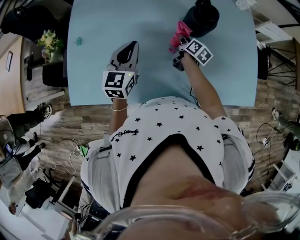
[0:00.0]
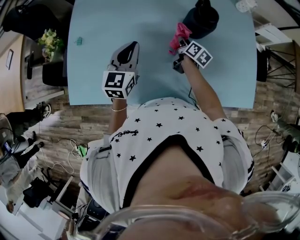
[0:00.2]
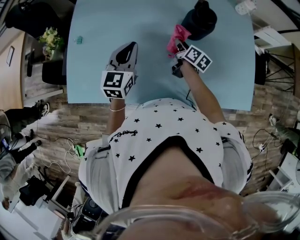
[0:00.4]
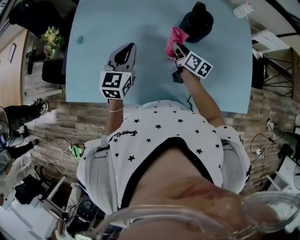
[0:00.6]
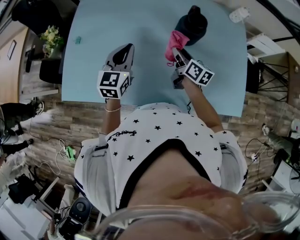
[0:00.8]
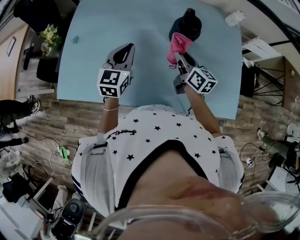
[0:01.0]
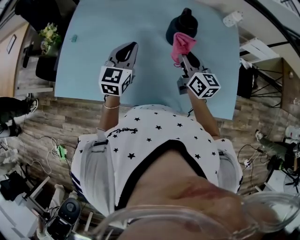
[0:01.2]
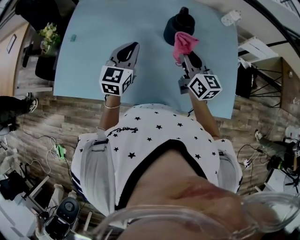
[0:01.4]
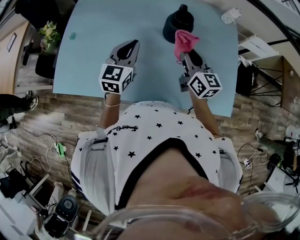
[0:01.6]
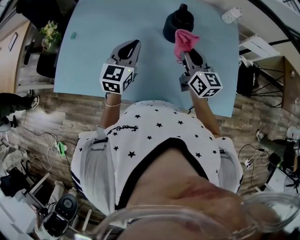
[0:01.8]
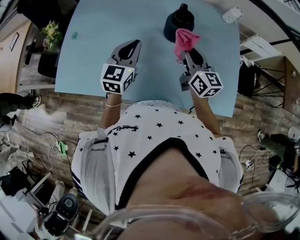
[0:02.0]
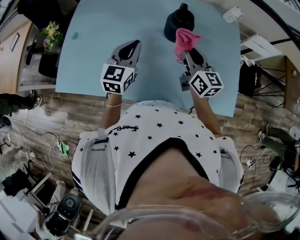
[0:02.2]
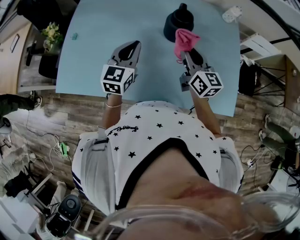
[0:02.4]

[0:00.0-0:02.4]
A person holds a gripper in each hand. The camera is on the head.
0.0 to 1.2 s: The left gripper moves to the right, approximately 10 cm; the right gripper is displaced upward and backward by some 20 cm, and changes its angle by about 50 degrees.
1.2 to 2.4 s: The grippers move only a little.

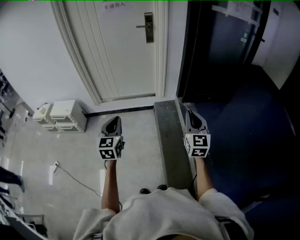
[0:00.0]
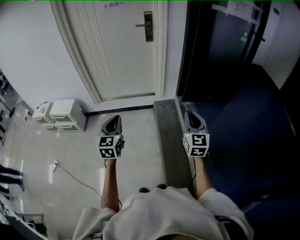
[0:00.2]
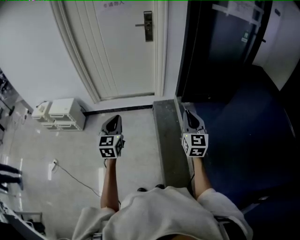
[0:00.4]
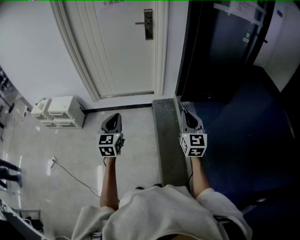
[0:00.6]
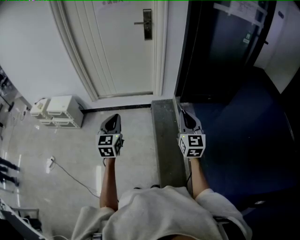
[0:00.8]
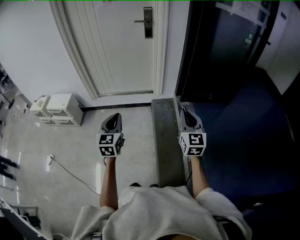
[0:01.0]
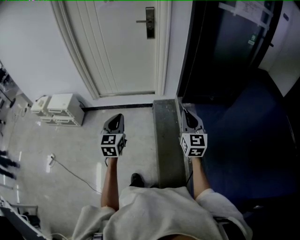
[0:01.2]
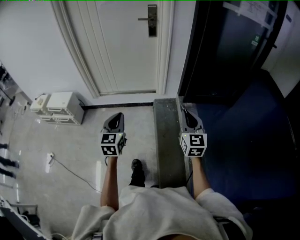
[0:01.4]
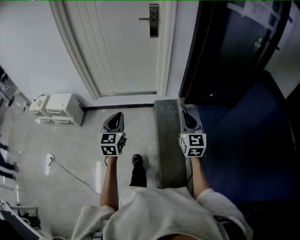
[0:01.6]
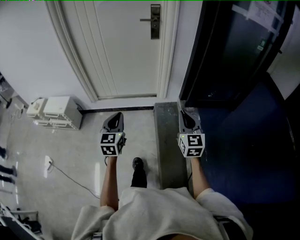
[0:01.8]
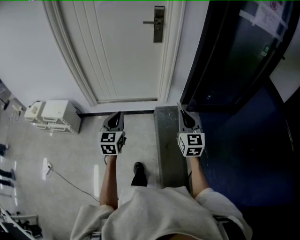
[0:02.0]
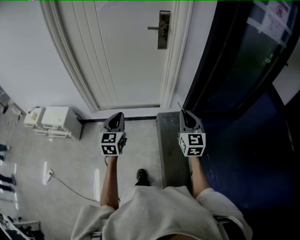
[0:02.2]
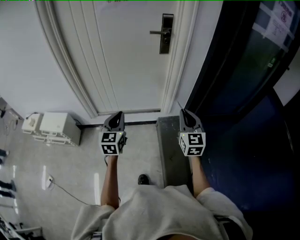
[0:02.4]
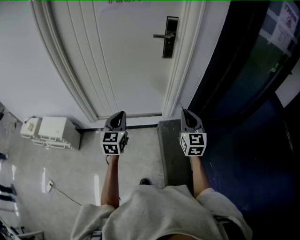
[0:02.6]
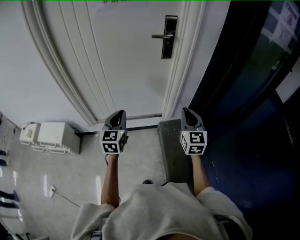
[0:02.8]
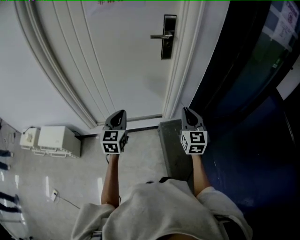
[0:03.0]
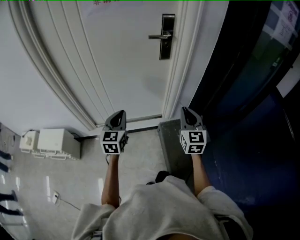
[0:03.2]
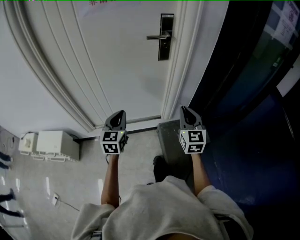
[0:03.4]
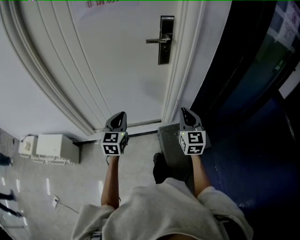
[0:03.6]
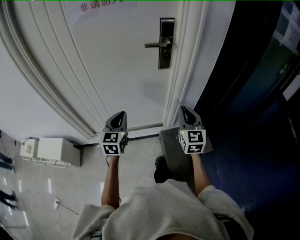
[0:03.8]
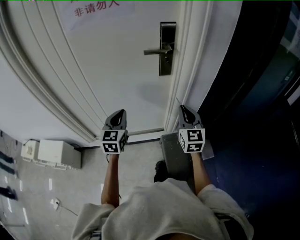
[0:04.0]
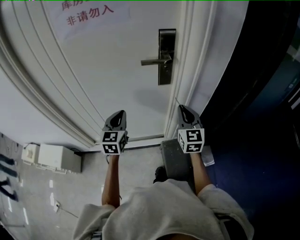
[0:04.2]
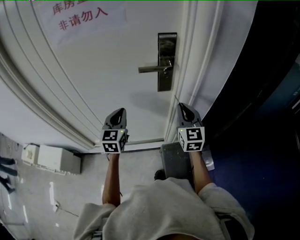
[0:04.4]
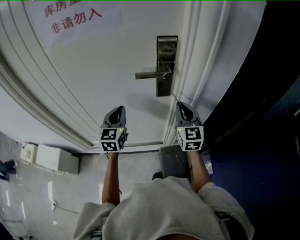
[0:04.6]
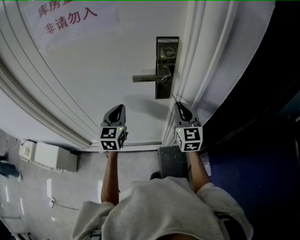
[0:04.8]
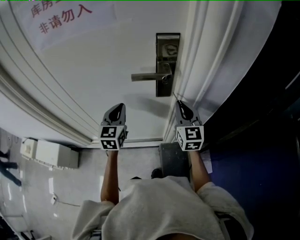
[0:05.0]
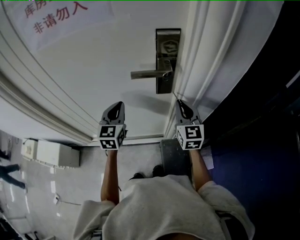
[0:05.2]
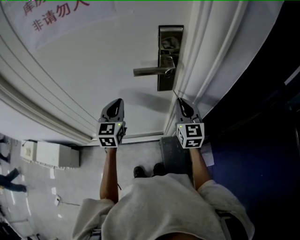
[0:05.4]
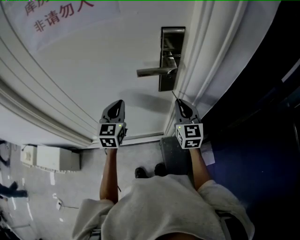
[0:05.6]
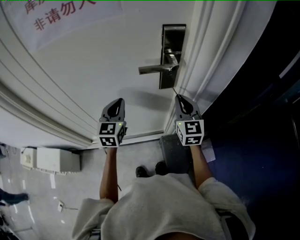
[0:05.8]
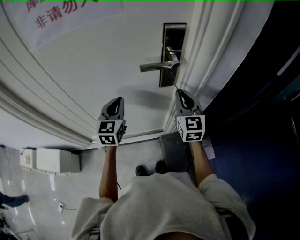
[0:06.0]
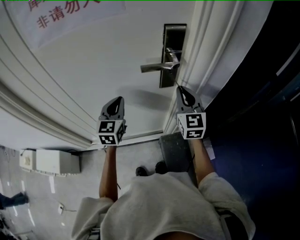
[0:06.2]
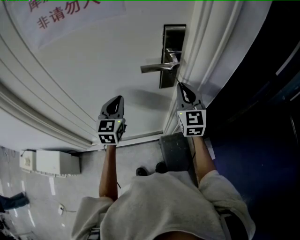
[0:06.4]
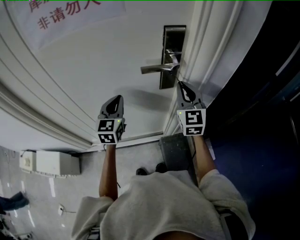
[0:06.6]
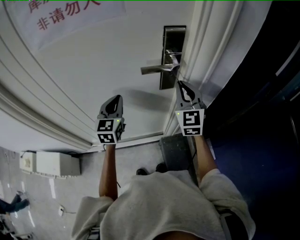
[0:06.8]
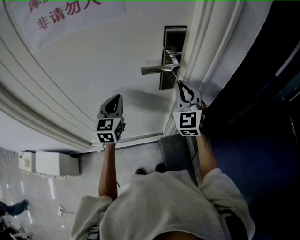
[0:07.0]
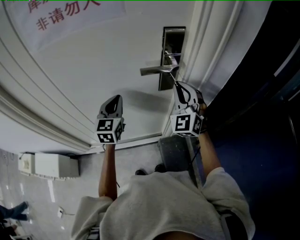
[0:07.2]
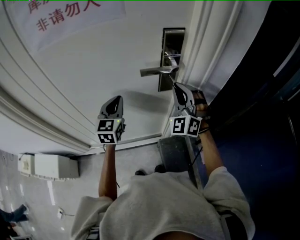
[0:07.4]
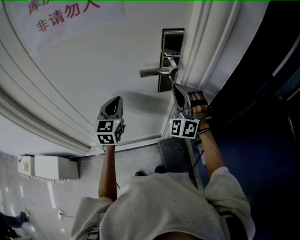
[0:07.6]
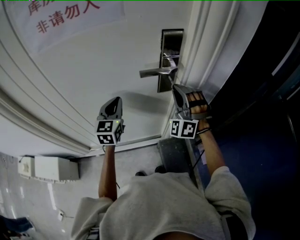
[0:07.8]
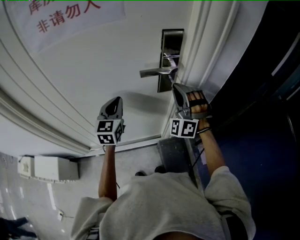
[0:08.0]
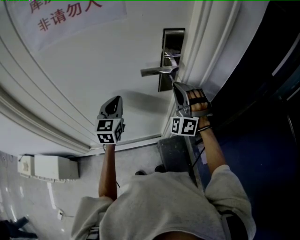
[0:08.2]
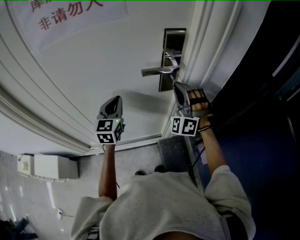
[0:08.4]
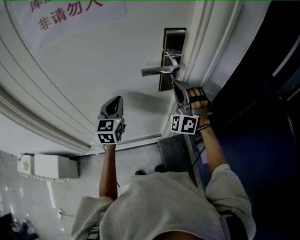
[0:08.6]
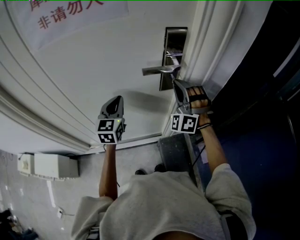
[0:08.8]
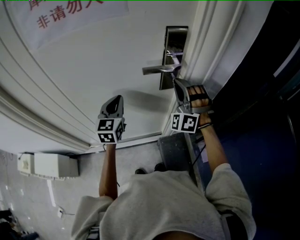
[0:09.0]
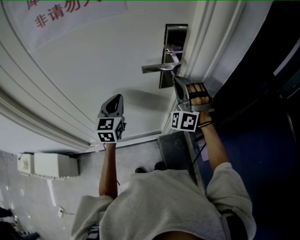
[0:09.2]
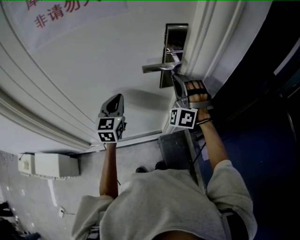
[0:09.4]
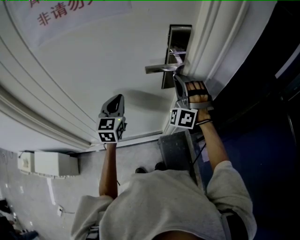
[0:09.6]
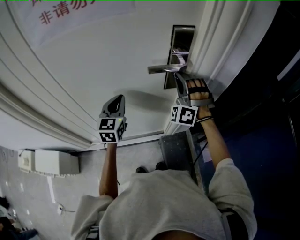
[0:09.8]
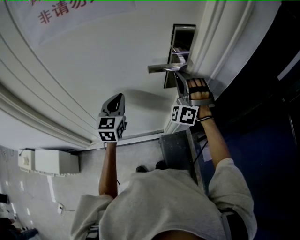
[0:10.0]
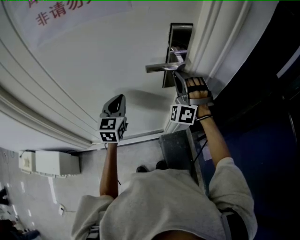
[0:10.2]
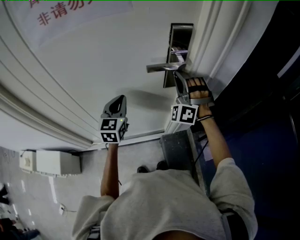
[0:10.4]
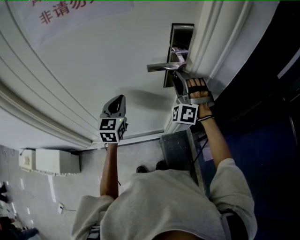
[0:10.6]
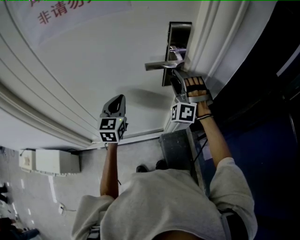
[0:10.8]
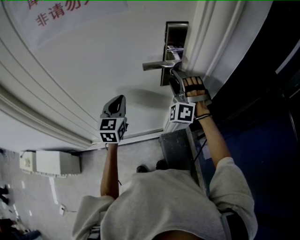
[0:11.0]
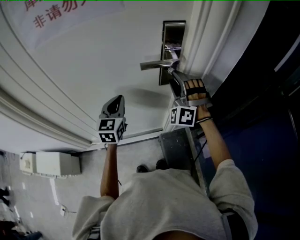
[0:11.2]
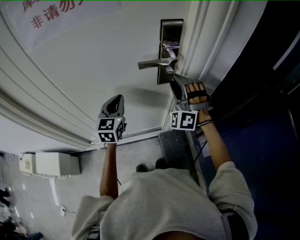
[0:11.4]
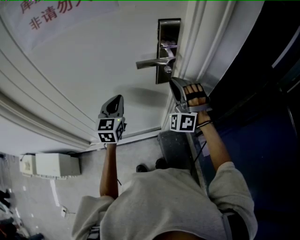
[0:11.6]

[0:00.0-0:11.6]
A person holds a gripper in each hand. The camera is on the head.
0.0 to 1.4 s: The right gripper shifts some 10 cm forward. Meanwhile the left gripper goes some 10 cm forward and to the right.
1.4 to 2.8 s: The two grippers travel together, forward, about 40 cm.
2.8 to 4.4 s: The two grippers go some 35 cm forward.
4.4 to 5.8 s: The two grippers go approximately 5 cm forward.
5.8 to 7.2 s: The right gripper shifts some 5 cm upward, and turns by roughly 40 degrees.
7.2 to 8.8 s: The right gripper swivels about 40 degrees.
8.8 to 10.2 s: The grippers make only small movements.
10.2 to 11.6 s: The right gripper ends up approximately 5 cm from where it was, and opens, then closes once more.

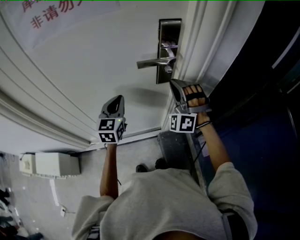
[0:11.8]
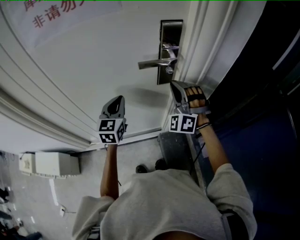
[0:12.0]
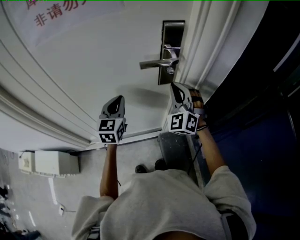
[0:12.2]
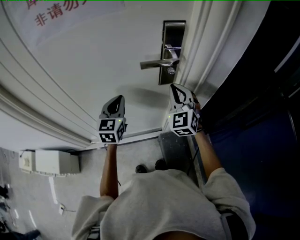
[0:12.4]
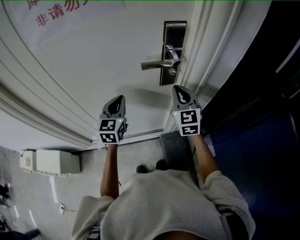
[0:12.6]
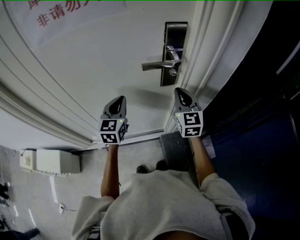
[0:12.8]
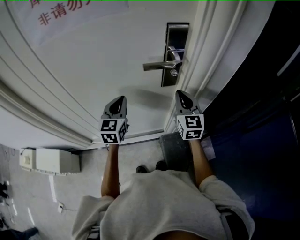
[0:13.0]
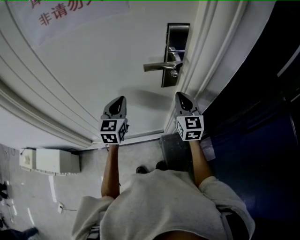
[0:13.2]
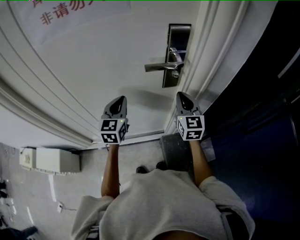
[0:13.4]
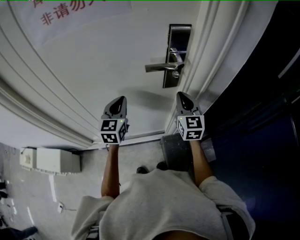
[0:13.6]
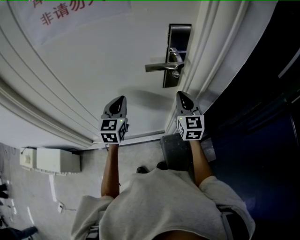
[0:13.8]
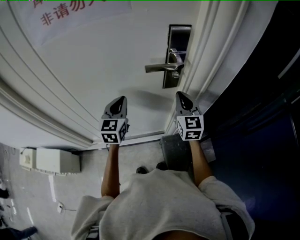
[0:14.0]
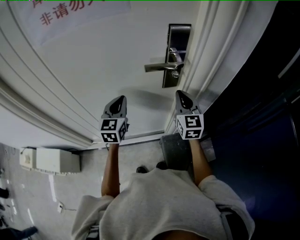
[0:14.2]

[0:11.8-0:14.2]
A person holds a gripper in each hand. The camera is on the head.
11.8 to 13.0 s: The right gripper rotates around the line of its fingers by some 80 degrees, clockwise from behind.
13.0 to 14.2 s: The two grippers keep their place.

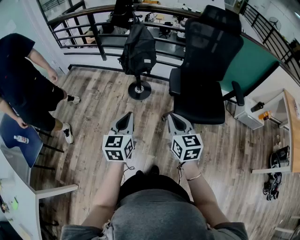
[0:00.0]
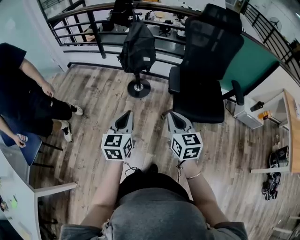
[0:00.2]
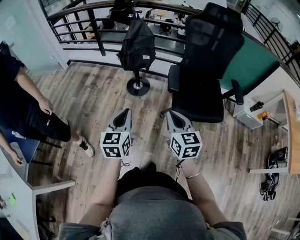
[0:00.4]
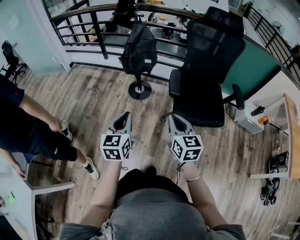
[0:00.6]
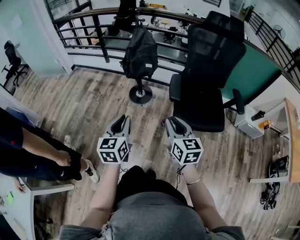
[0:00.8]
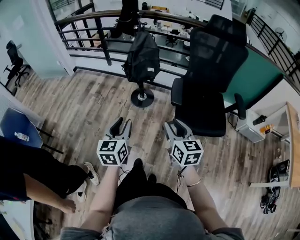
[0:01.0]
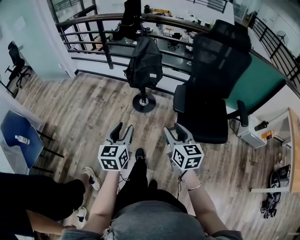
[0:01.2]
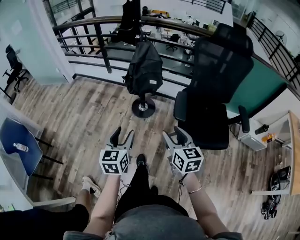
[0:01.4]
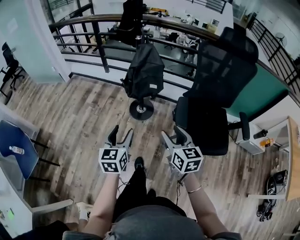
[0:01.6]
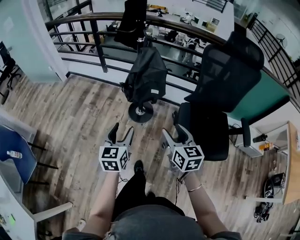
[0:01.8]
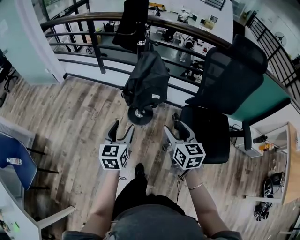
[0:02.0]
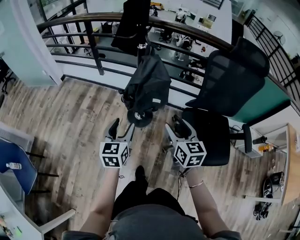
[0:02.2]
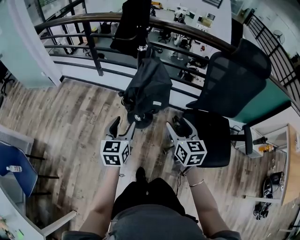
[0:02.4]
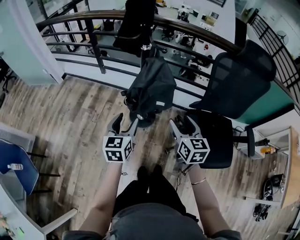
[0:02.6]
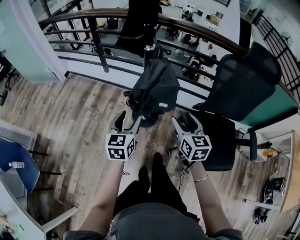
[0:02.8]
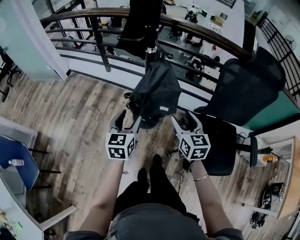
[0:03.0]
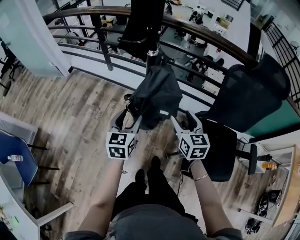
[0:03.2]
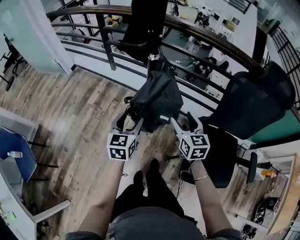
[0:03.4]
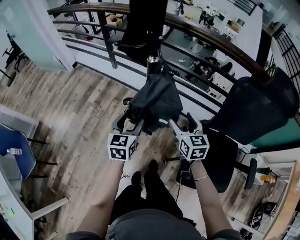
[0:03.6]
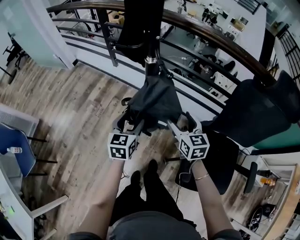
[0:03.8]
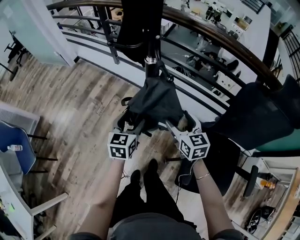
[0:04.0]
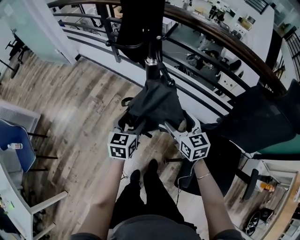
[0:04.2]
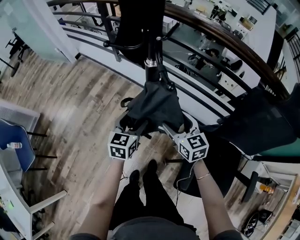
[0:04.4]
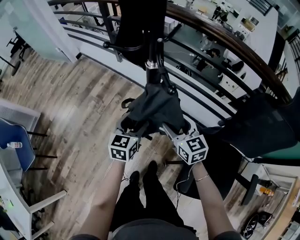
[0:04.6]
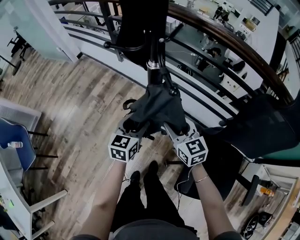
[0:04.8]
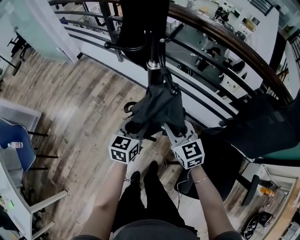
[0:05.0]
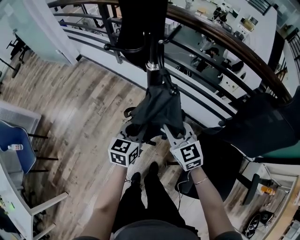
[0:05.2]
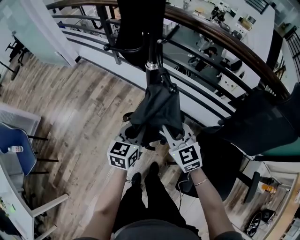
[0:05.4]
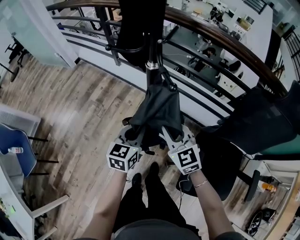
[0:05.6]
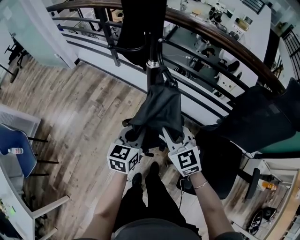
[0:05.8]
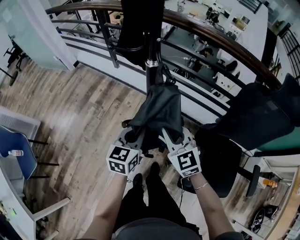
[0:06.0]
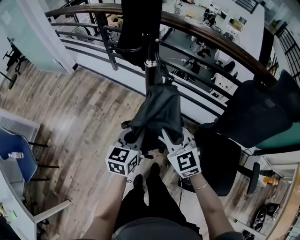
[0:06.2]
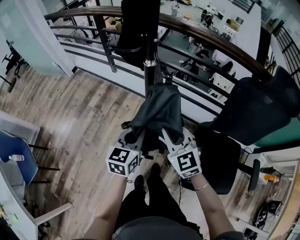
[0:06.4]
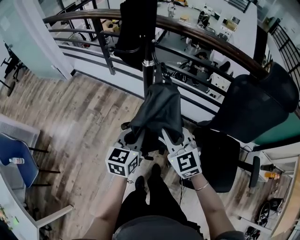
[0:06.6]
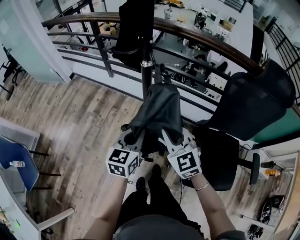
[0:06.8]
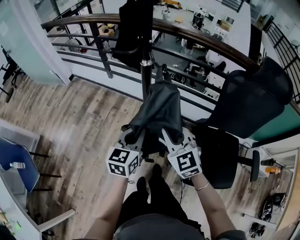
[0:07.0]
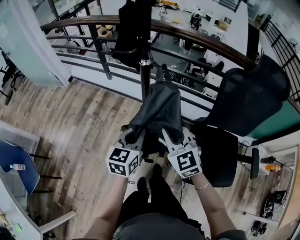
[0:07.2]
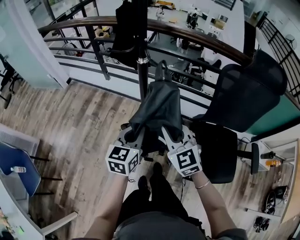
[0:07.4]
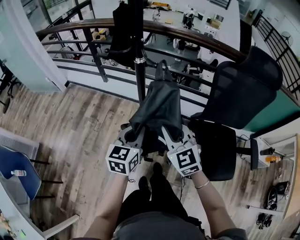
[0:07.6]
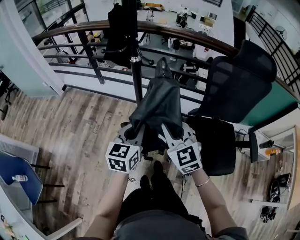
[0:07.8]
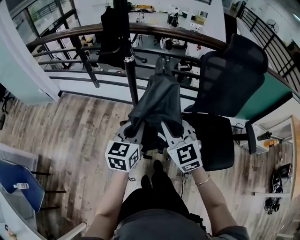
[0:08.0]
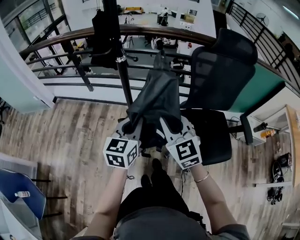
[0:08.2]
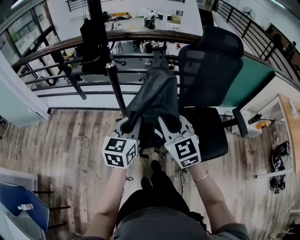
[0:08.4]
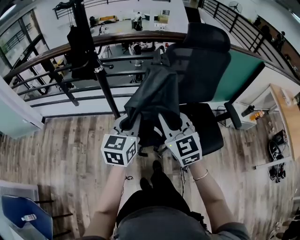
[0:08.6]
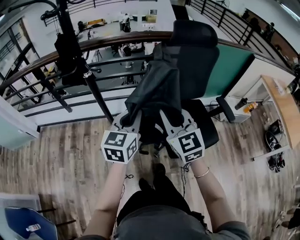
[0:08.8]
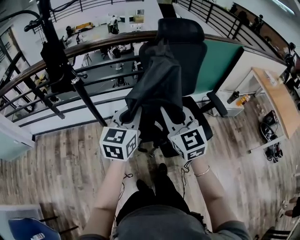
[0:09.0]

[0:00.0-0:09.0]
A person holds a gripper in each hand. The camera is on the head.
0.0 to 1.6 s: Both grippers travel together forward, approximately 15 cm. The right gripper opens. Meanwhile the left gripper opens.
1.6 to 3.0 s: The grippers both shift forward by approximately 25 cm.
3.0 to 4.4 s: The left gripper heads forward, downward and to the right, covering approximately 15 cm, while the right gripper shifts some 15 cm forward and downward, and rotates roughly 30 degrees.
4.4 to 6.0 s: The right gripper travels backward, upward and to the left by about 10 cm, swivels roughly 20 degrees, and closes its fingers. The left gripper moves backward, roughly 5 cm, and closes up.
6.0 to 7.6 s: Both grippers move backward and upward, approximately 10 cm.
7.6 to 9.0 s: The right gripper shifts by roughly 25 cm, and swivels about 30 degrees; the left gripper shifts by some 25 cm, and changes its angle by approximately 30 degrees.
